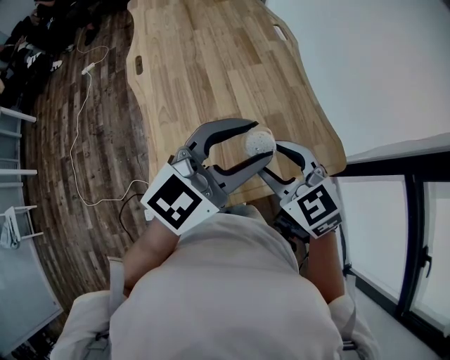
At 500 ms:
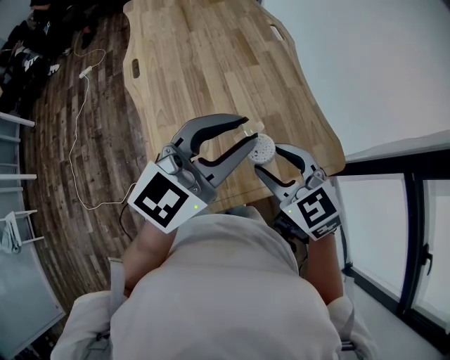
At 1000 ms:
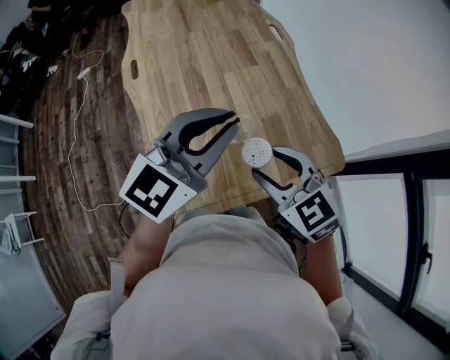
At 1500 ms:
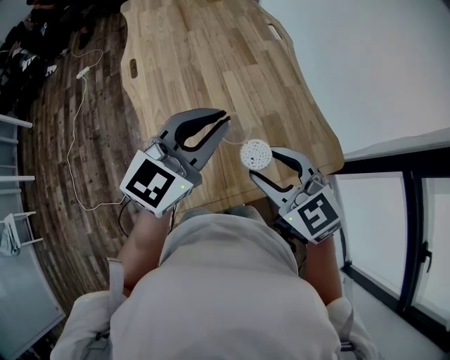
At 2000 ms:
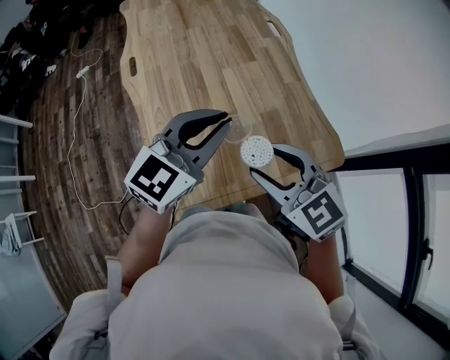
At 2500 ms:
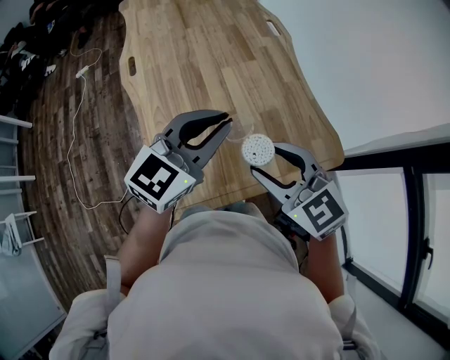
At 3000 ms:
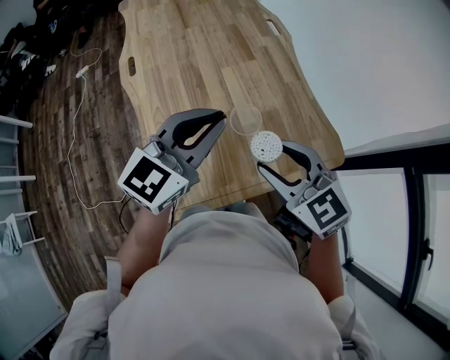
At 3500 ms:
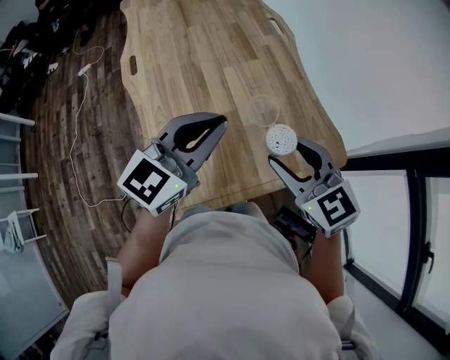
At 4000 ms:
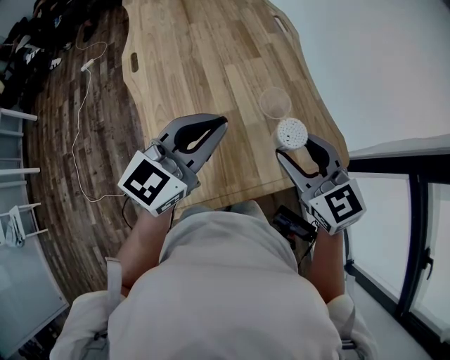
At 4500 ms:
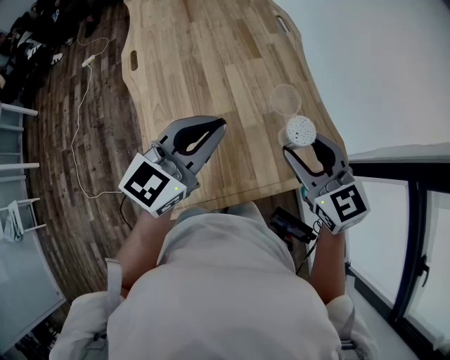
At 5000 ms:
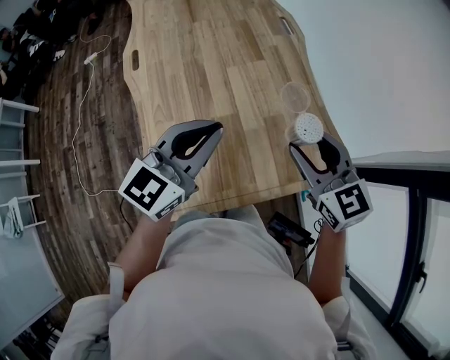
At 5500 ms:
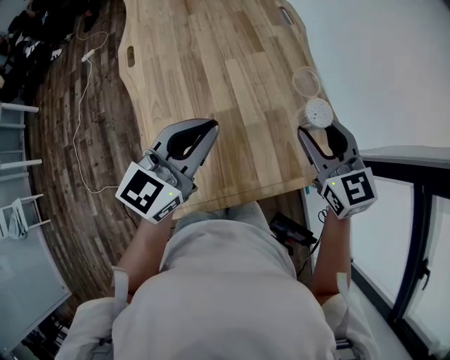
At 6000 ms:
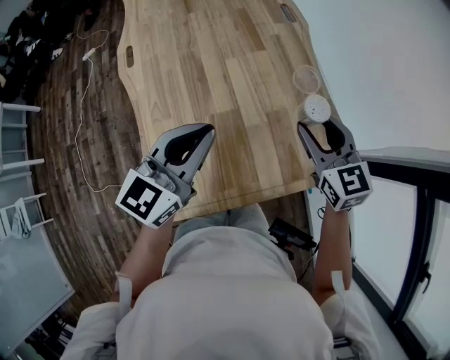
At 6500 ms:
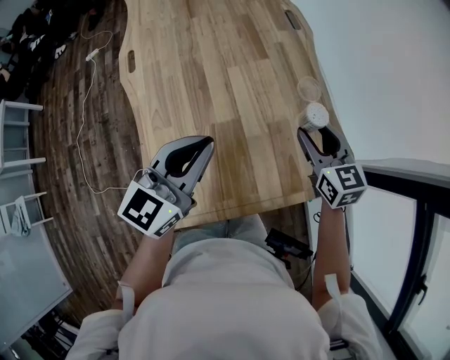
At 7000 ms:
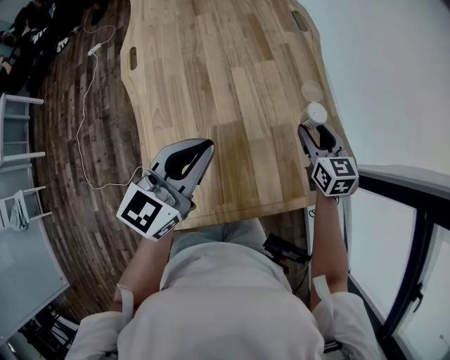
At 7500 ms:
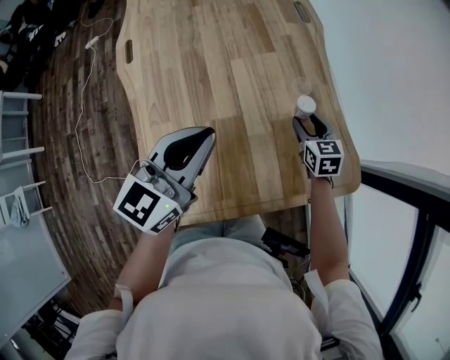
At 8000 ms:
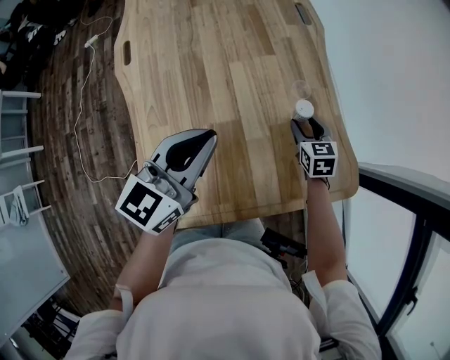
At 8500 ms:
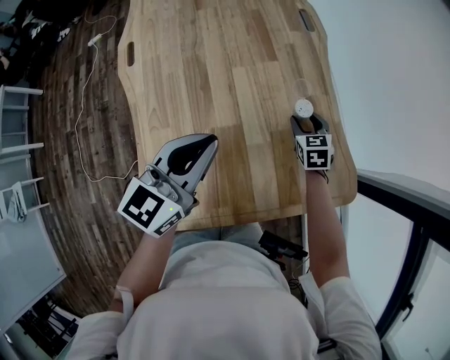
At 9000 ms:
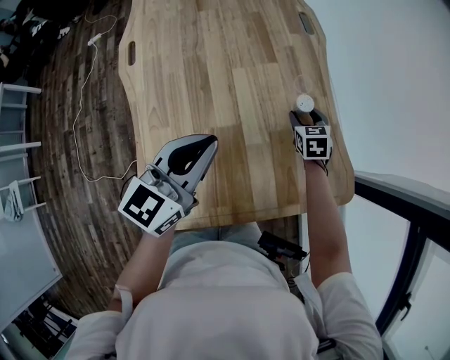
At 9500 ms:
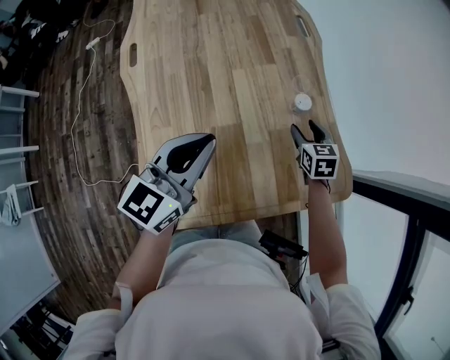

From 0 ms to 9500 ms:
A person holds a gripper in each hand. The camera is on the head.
From 0 ms to 2000 ms: The left gripper moves to the left, some 5 cm, and closes its fingers.
From 2000 ms to 4000 ms: The right gripper is displaced to the right and forward by some 10 cm.
From 4000 ms to 5500 ms: The right gripper travels forward and to the right by roughly 10 cm.
From 5500 ms to 7500 ms: The right gripper shifts about 25 cm downward and forward, and turns by about 20 degrees, while the left gripper ends up roughly 5 cm from where it was.

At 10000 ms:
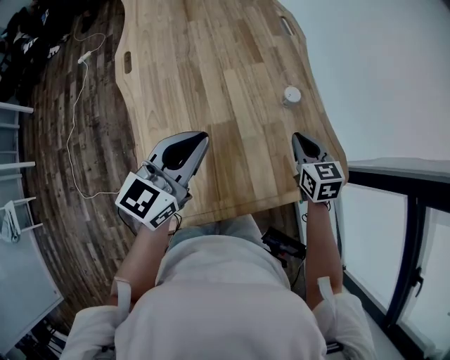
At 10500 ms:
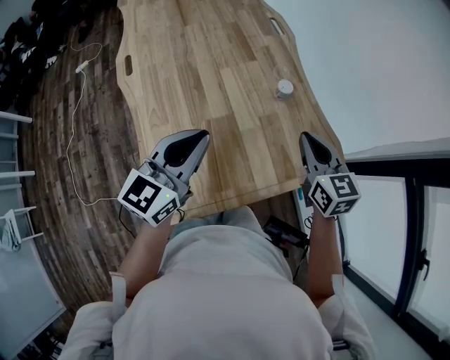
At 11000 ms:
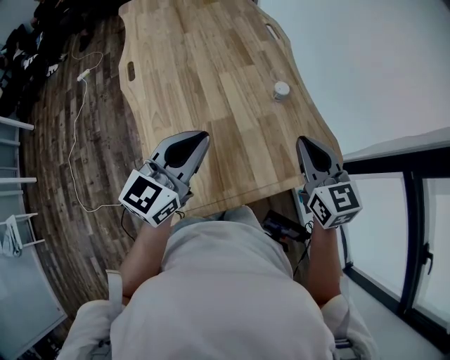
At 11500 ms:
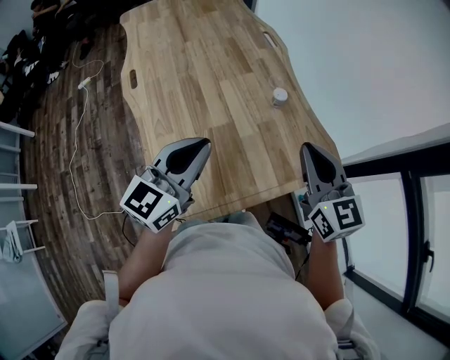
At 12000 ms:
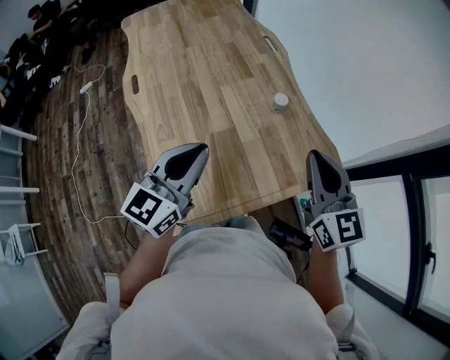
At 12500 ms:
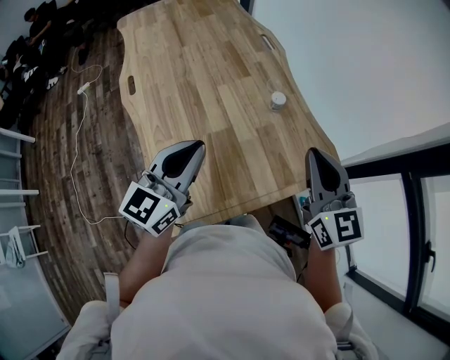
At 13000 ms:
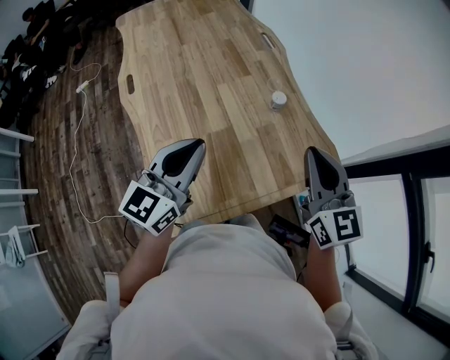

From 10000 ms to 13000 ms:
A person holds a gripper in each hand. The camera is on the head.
From 10000 ms to 11500 ms: The left gripper travels backward by roughly 5 cm. Meanwhile the right gripper is displaced upward and backward by about 25 cm, and turns by about 30 degrees.
From 11500 ms to 13000 ms: The grippers stay close to where they were, moving slightly.

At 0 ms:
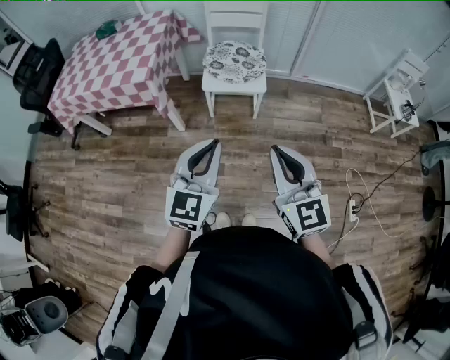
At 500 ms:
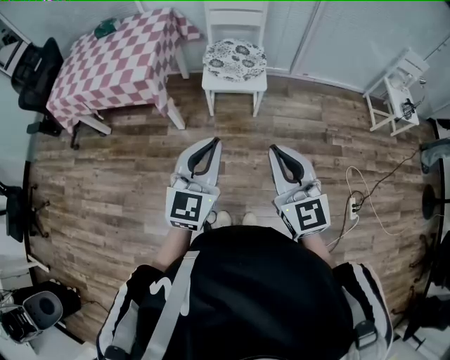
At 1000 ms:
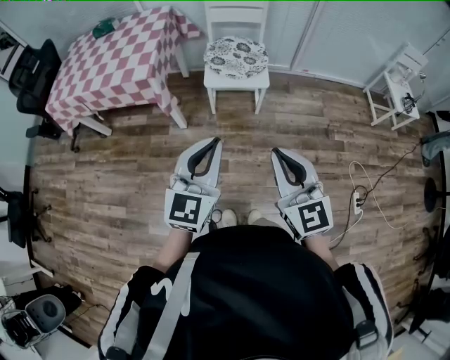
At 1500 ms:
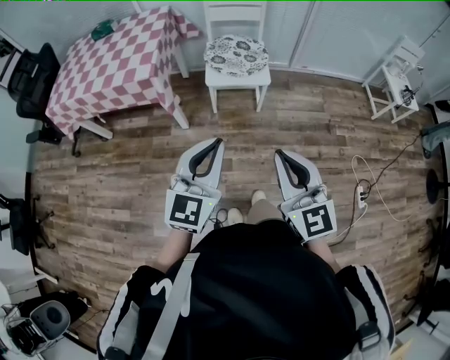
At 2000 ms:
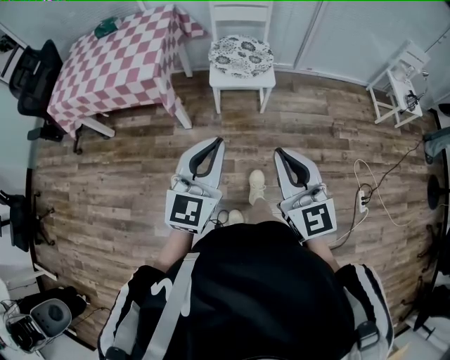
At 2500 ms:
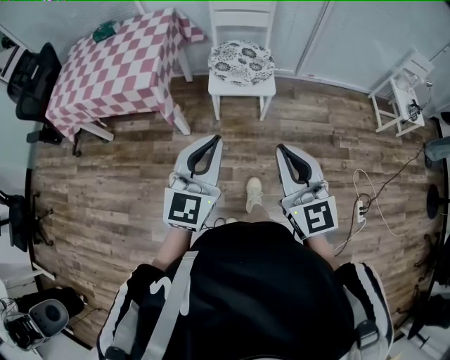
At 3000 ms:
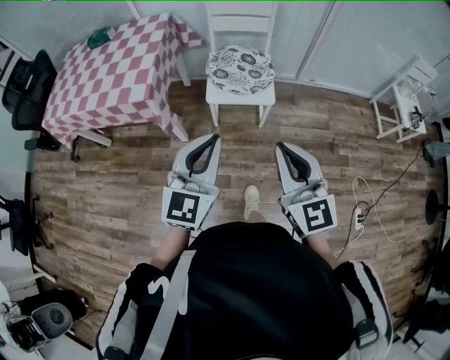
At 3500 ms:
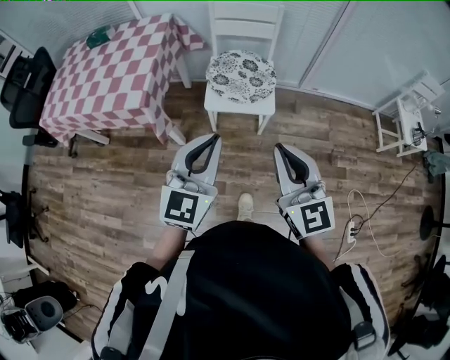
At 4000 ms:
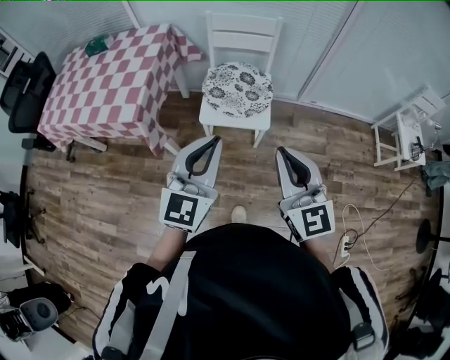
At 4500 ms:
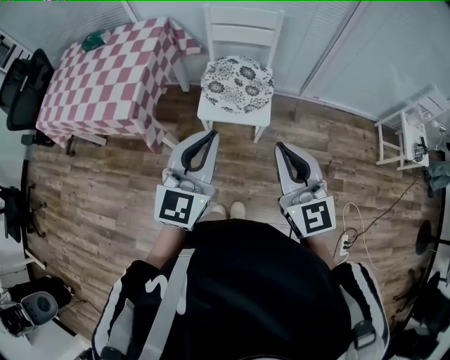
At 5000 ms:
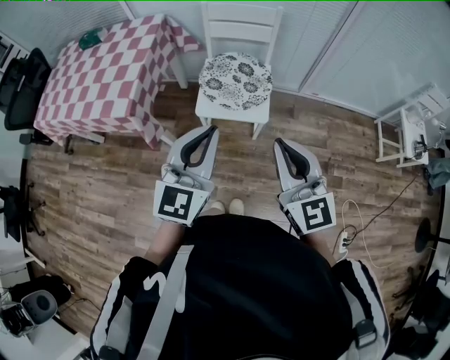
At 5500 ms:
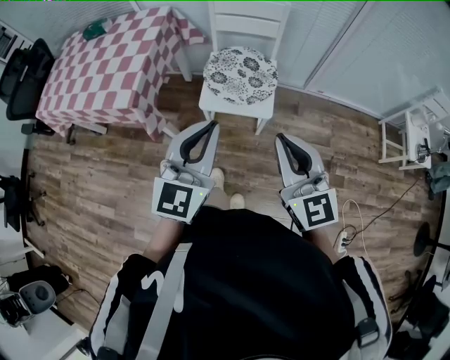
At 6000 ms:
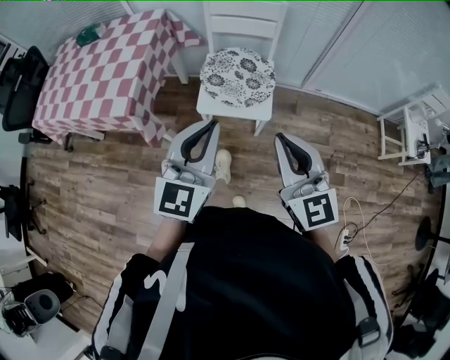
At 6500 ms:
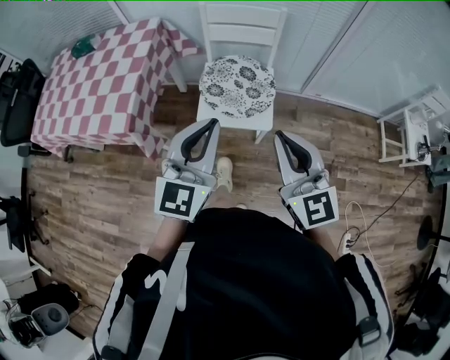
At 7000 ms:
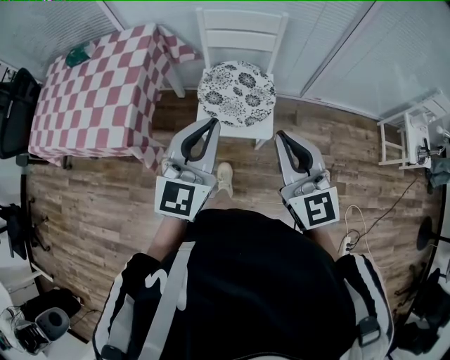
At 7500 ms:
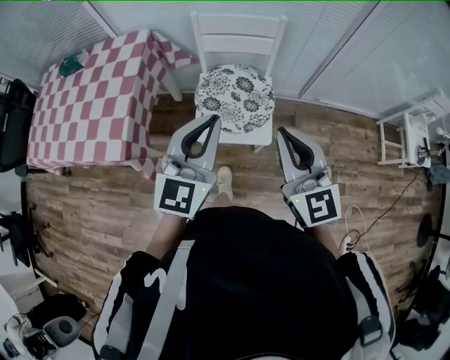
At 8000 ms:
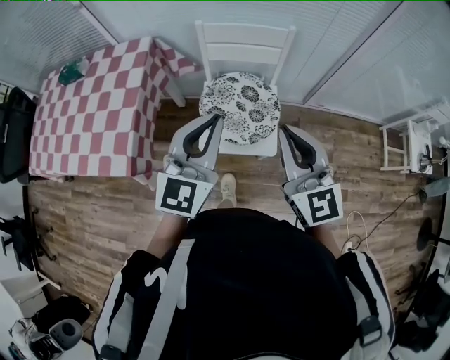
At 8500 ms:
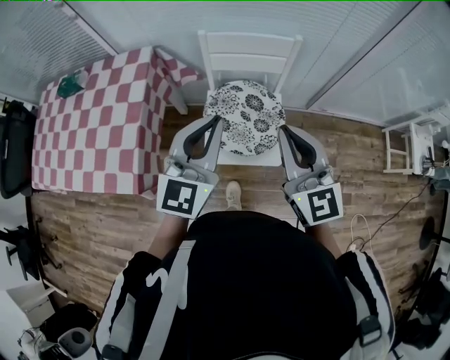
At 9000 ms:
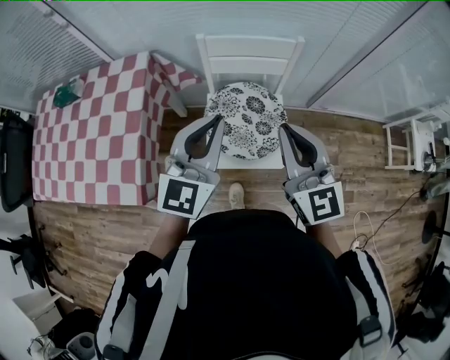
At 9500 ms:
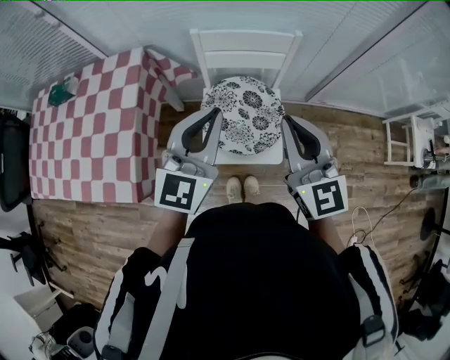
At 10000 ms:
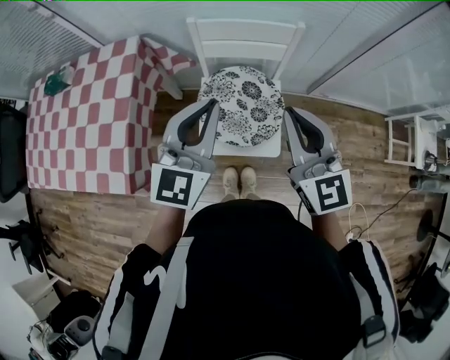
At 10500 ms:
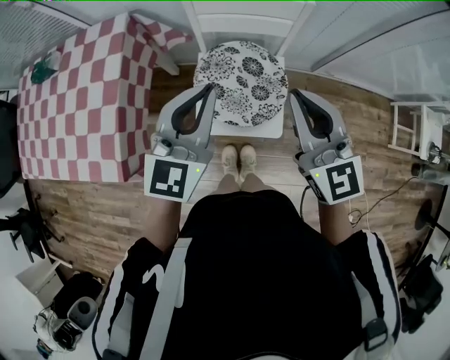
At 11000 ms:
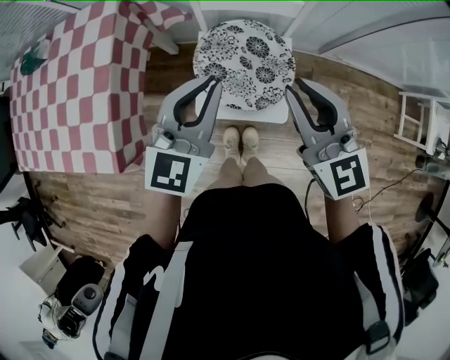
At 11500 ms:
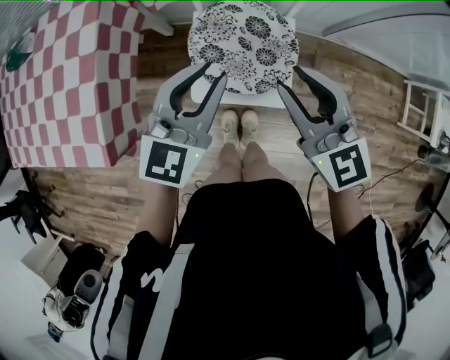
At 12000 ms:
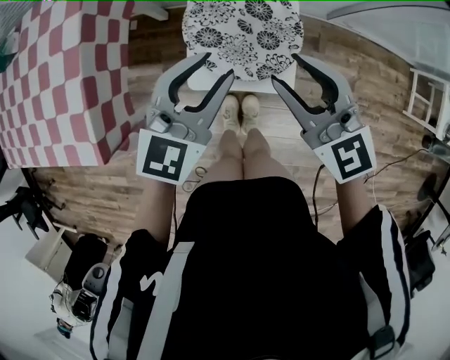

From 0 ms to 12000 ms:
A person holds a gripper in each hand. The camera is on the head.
From 0 ms to 2000 ms: The grippers both shift to the left by approximately 5 cm.
From 2000 ms to 4000 ms: Both grippers move forward, roughly 25 cm.
From 4000 ms to 6000 ms: Both grippers move forward, about 5 cm.
From 6000 ms to 8000 ms: The grippers both shift forward by about 25 cm.
From 8000 ms to 10000 ms: The two grippers go some 10 cm forward.
From 10000 ms to 12000 ms: Both grippers travel together downward, approximately 15 cm. The right gripper rotates some 20 degrees, and opens its fingers, while the left gripper opens.

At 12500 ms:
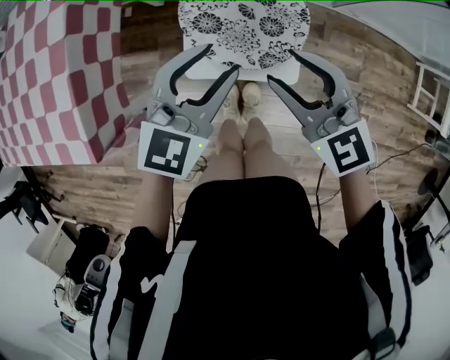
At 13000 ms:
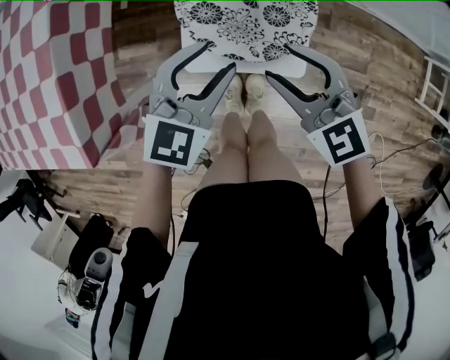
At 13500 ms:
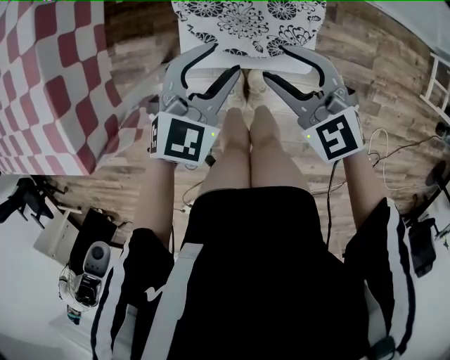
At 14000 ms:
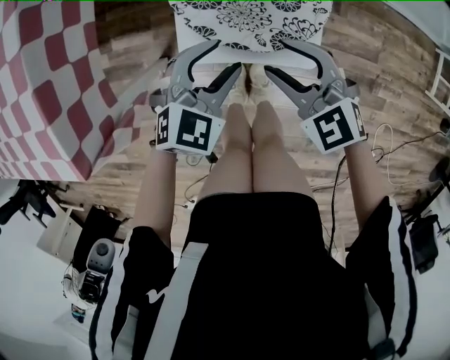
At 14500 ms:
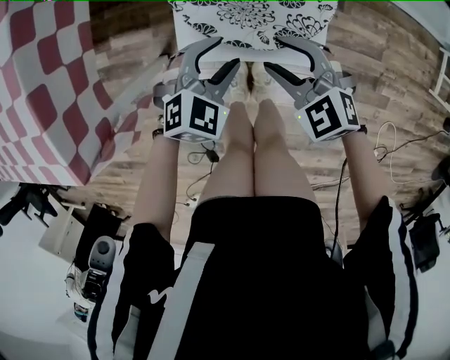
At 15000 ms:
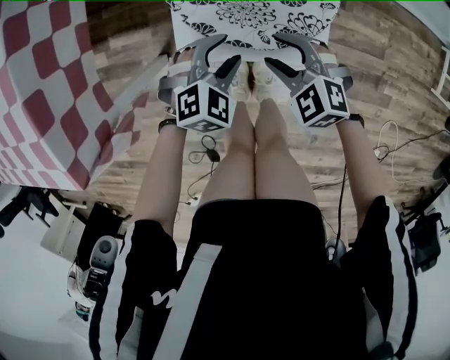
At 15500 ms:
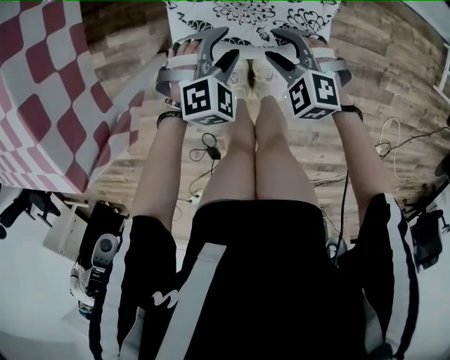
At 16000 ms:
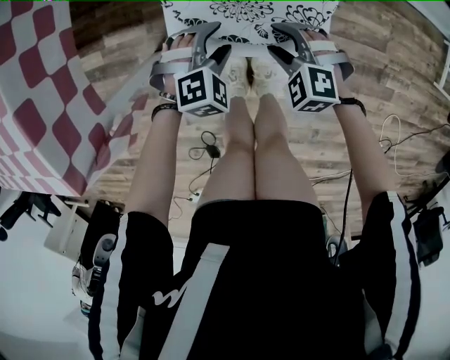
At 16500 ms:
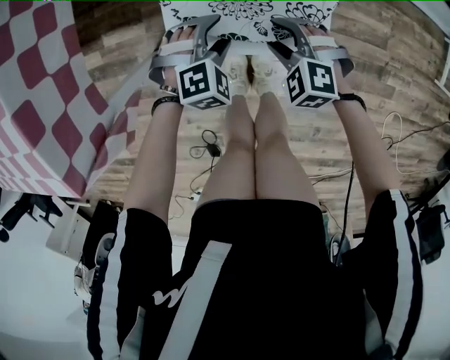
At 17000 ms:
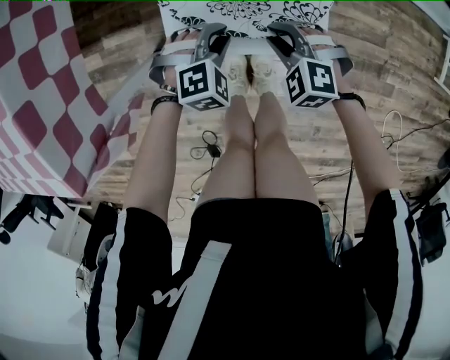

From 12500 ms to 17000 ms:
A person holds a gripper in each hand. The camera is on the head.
From 12500 ms to 14500 ms: The two grippers go approximately 25 cm downward. The right gripper swivels approximately 30 degrees, while the left gripper swivels approximately 30 degrees.
From 14500 ms to 17000 ms: Both grippers travel together downward, some 10 cm. The right gripper swivels approximately 20 degrees, and closes up. The left gripper changes its angle by approximately 30 degrees, and closes.
